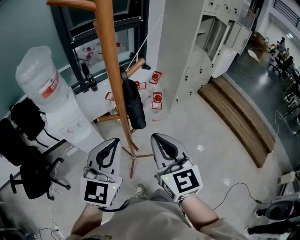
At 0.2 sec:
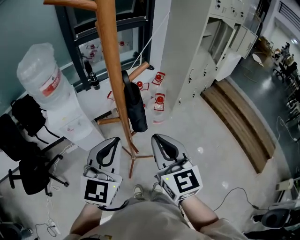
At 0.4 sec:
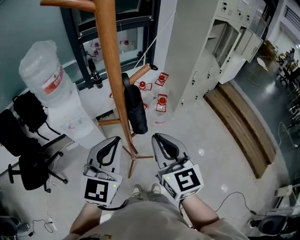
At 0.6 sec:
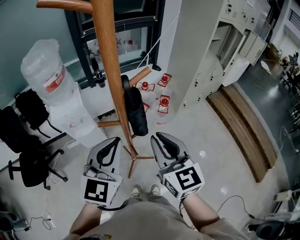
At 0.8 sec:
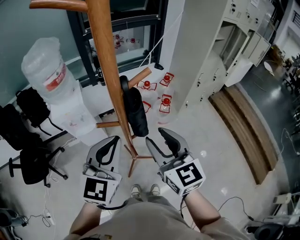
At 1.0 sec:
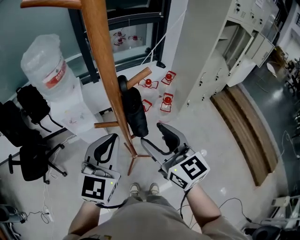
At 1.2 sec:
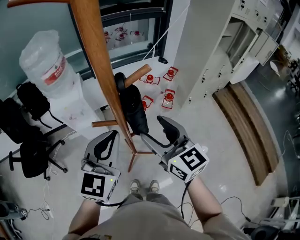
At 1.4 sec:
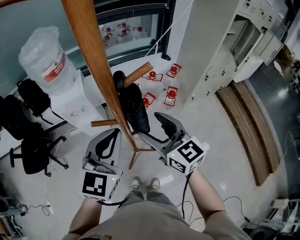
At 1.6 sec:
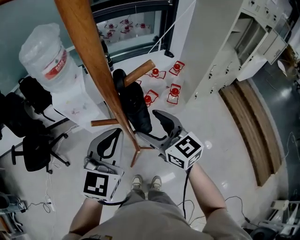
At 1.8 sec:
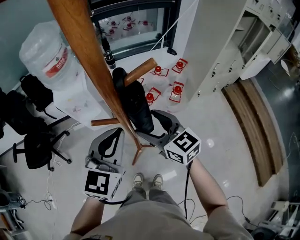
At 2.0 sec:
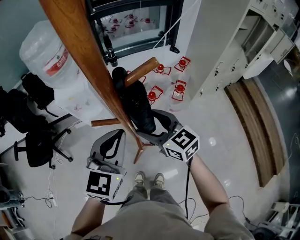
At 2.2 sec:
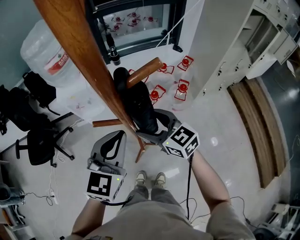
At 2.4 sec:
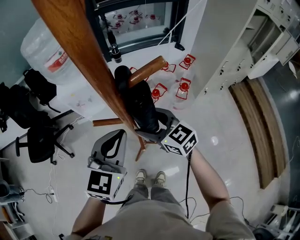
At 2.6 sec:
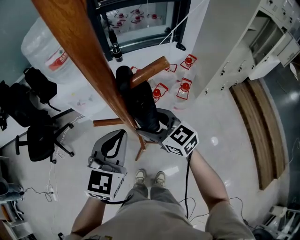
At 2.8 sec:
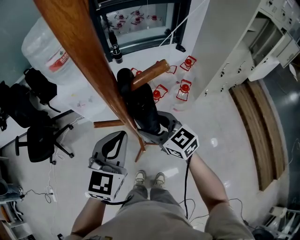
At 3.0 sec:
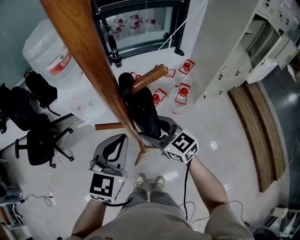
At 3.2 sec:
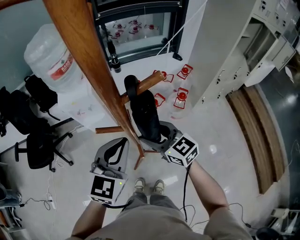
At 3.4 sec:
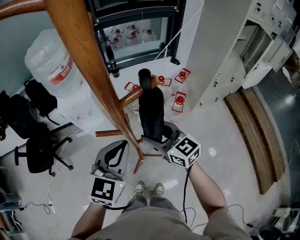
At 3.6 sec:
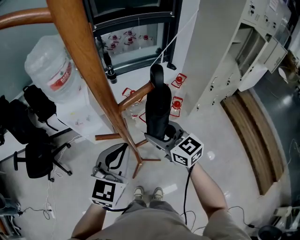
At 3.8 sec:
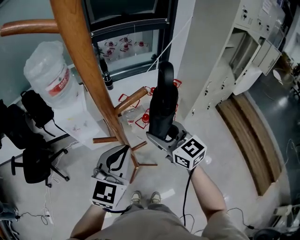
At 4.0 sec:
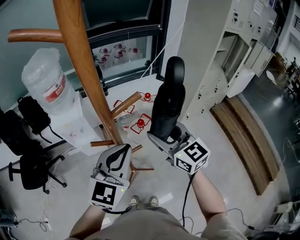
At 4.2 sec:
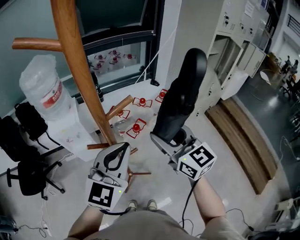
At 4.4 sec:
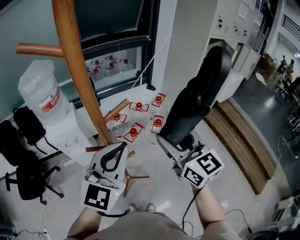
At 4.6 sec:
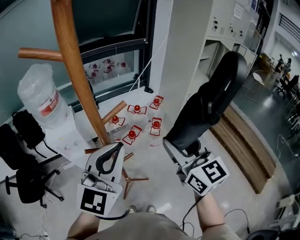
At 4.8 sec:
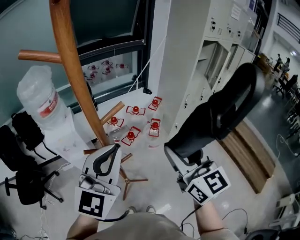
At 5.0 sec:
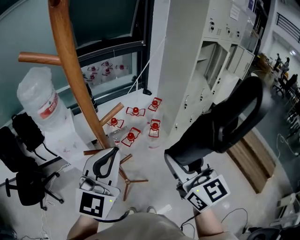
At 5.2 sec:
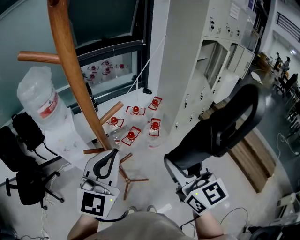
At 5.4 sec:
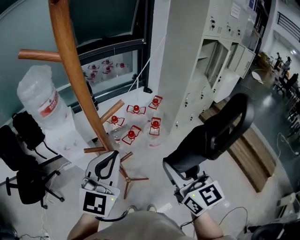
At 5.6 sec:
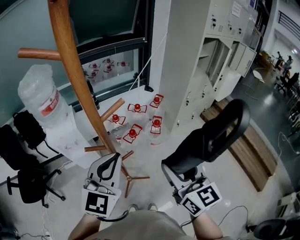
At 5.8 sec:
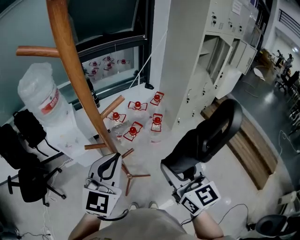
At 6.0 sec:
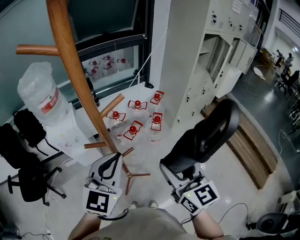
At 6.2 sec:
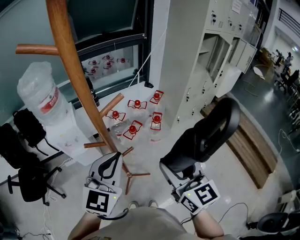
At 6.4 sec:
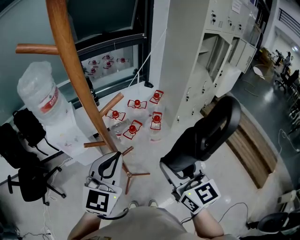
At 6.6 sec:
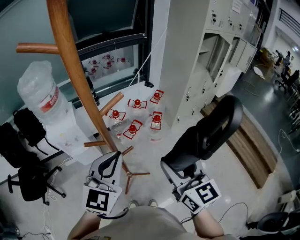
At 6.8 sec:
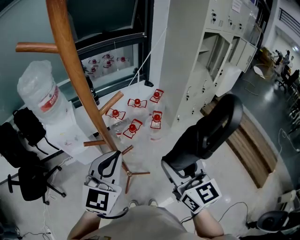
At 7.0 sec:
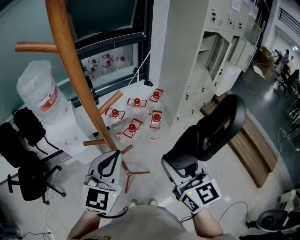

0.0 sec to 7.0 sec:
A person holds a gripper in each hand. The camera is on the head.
0.0 sec to 1.4 sec: The left gripper is displaced forward by about 10 cm; the right gripper goes about 15 cm forward and downward, changes its angle by some 30 degrees, and opens up.
1.4 sec to 2.8 sec: The right gripper moves downward and forward, about 10 cm, while the left gripper heads downward, covering roughly 5 cm.
2.8 sec to 4.2 sec: The right gripper shifts roughly 20 cm upward and to the right, and swivels about 30 degrees. Meanwhile the left gripper is displaced upward and to the right by roughly 15 cm, and rotates approximately 20 degrees.
4.2 sec to 5.6 sec: The right gripper moves backward and to the right, about 15 cm.
5.6 sec to 7.0 sec: There are only small adjustments of the grippers.

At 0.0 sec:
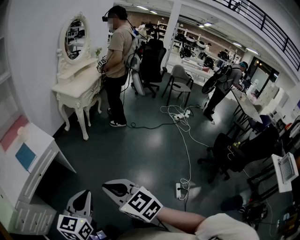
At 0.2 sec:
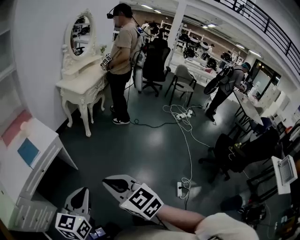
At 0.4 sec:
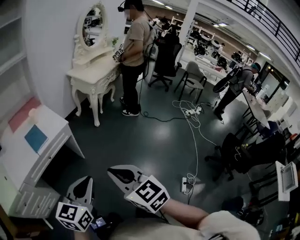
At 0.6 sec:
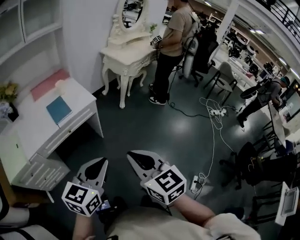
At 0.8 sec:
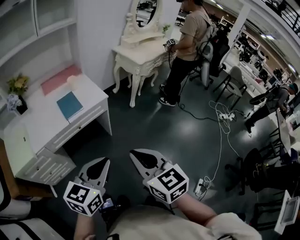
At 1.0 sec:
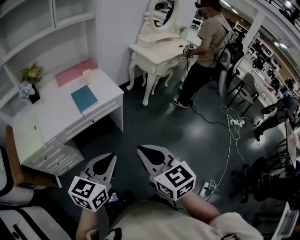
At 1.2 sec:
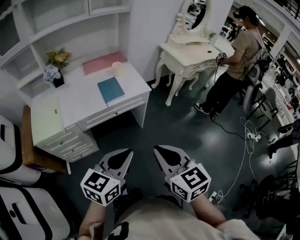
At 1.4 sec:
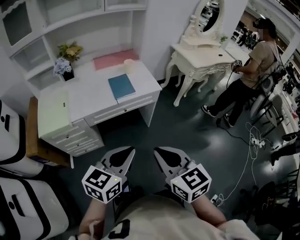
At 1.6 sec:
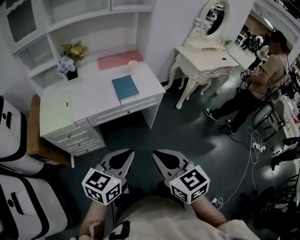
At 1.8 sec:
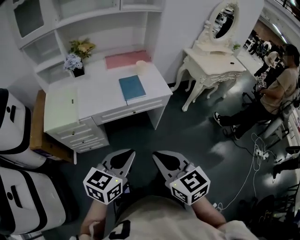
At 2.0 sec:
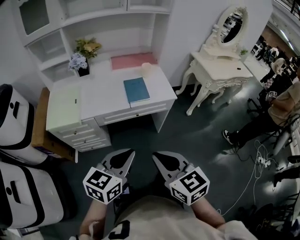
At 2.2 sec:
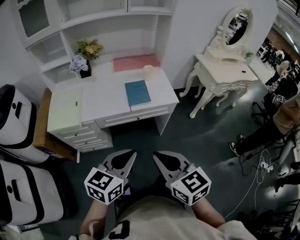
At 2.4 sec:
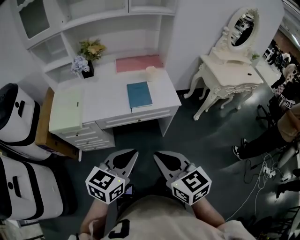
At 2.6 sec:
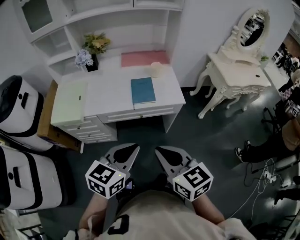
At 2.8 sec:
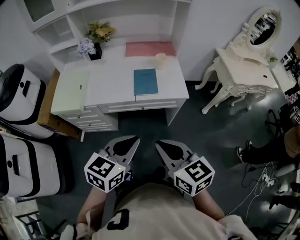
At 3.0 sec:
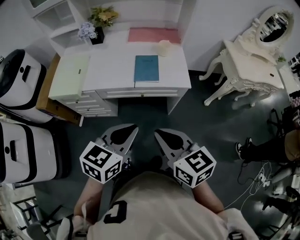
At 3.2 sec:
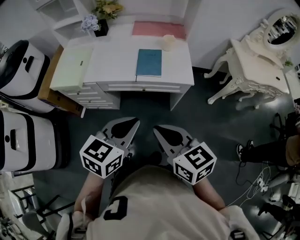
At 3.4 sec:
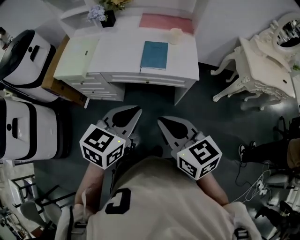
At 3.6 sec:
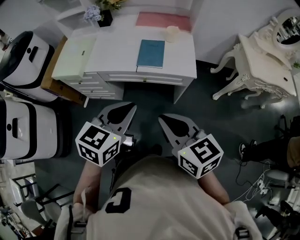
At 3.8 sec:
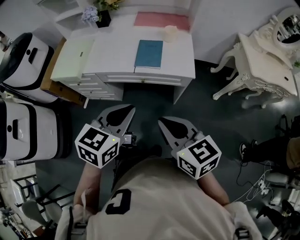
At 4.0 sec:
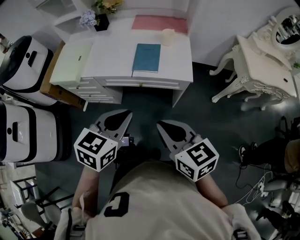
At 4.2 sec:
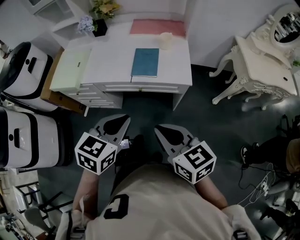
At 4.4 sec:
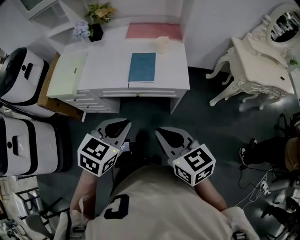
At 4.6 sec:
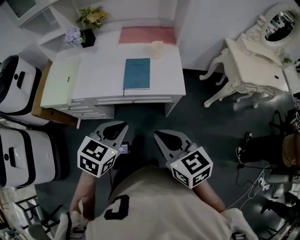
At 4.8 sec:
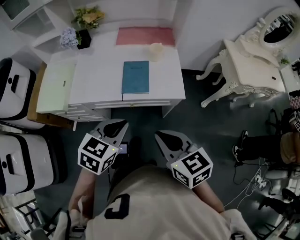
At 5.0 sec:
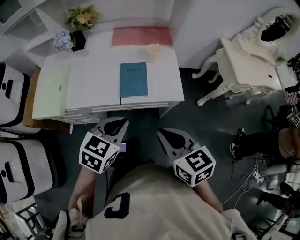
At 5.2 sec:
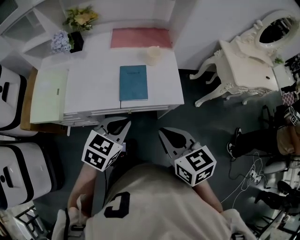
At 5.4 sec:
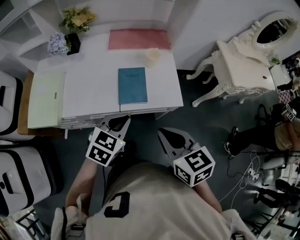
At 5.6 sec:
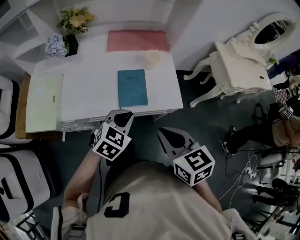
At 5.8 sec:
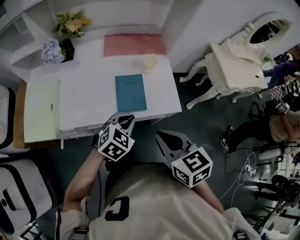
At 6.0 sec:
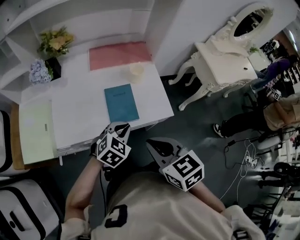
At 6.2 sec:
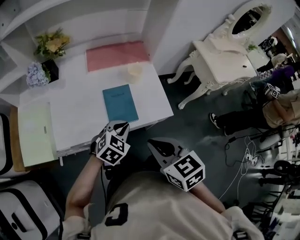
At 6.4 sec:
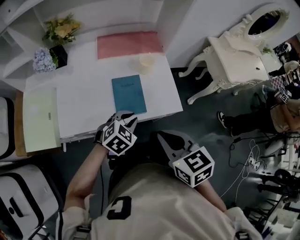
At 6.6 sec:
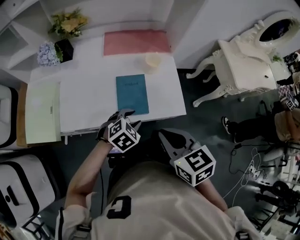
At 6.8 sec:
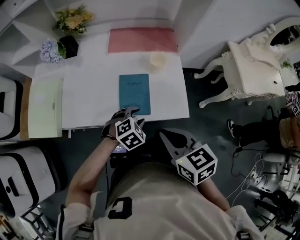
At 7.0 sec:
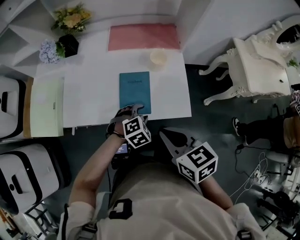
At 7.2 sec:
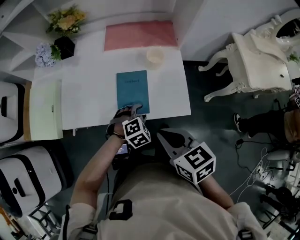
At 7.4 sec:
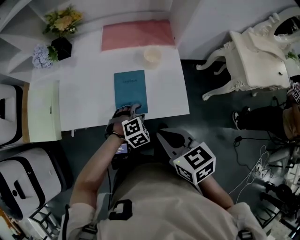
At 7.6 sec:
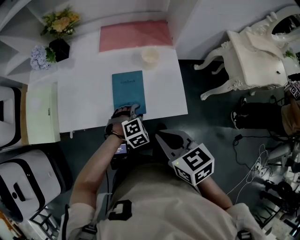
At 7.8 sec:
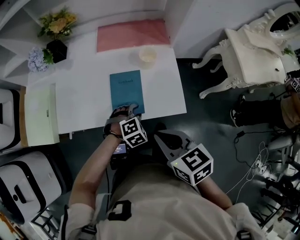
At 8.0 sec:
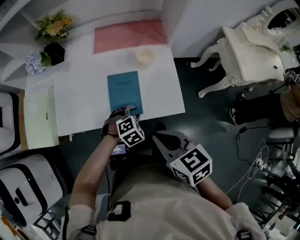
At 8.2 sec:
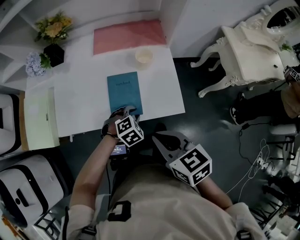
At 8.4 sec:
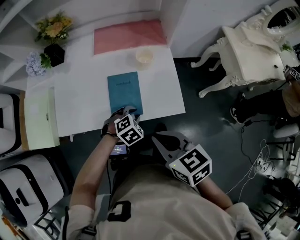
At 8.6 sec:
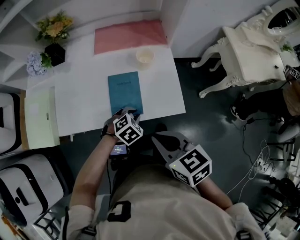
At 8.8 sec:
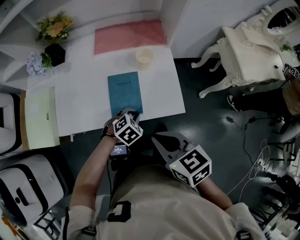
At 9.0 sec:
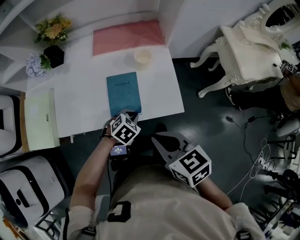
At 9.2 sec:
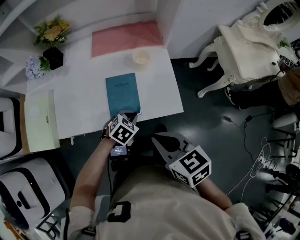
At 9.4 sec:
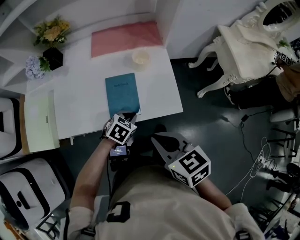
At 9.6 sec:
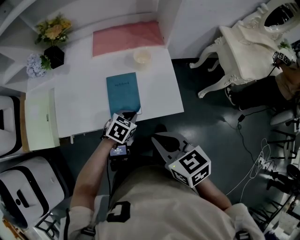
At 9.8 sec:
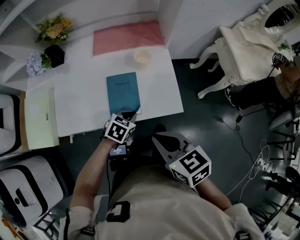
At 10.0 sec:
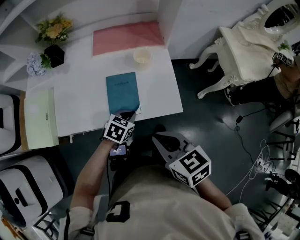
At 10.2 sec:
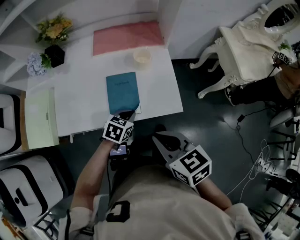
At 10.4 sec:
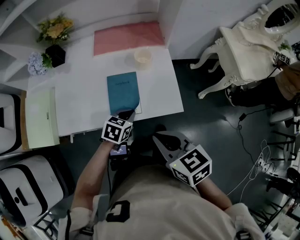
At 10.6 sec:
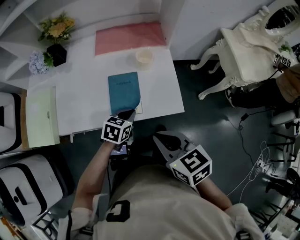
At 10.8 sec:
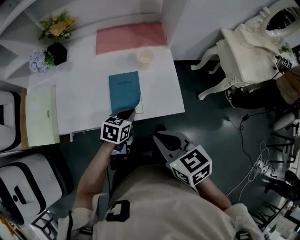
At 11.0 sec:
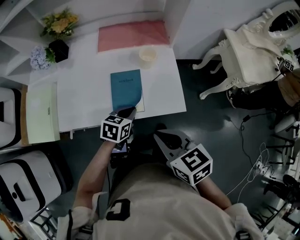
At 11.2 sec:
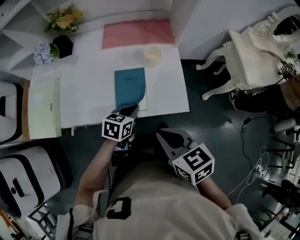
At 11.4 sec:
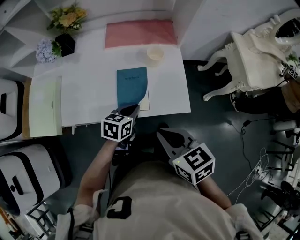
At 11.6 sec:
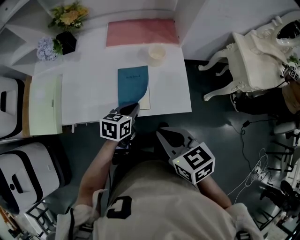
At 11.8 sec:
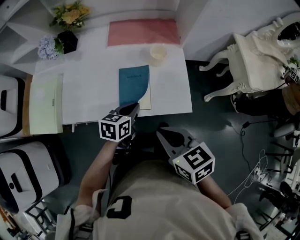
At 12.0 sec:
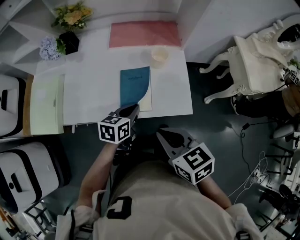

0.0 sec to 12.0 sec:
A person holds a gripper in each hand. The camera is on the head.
0.0 sec to 1.6 sec: The two grippers go about 25 cm to the left. The left gripper rotates some 20 degrees; the right gripper changes its angle by about 20 degrees.
1.6 sec to 3.0 sec: Both grippers travel together forward and to the right, about 15 cm. The right gripper rotates approximately 20 degrees.
3.0 sec to 4.4 sec: The left gripper moves some 5 cm, while the right gripper shifts about 5 cm to the right.
4.4 sec to 6.0 sec: The left gripper goes approximately 25 cm forward and downward, and changes its angle by about 30 degrees; the right gripper goes about 15 cm forward and to the left, and rotates roughly 20 degrees.
6.0 sec to 7.6 sec: The left gripper goes roughly 15 cm downward, rotates about 30 degrees, and opens; the right gripper heads to the right, covering roughly 5 cm.
7.6 sec to 9.0 sec: The left gripper swivels approximately 30 degrees, and closes its fingers.
9.0 sec to 10.4 sec: The left gripper rotates approximately 30 degrees.
10.4 sec to 12.0 sec: The left gripper shifts by about 5 cm, and swivels about 20 degrees.

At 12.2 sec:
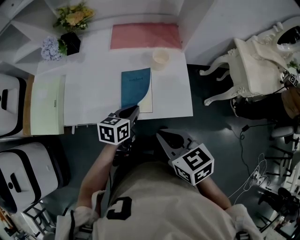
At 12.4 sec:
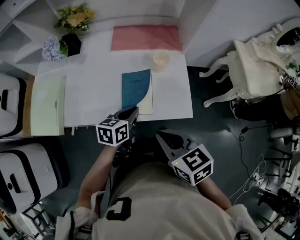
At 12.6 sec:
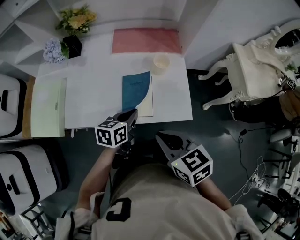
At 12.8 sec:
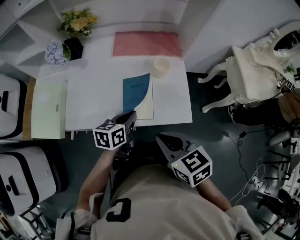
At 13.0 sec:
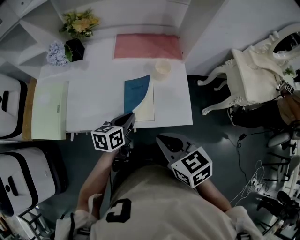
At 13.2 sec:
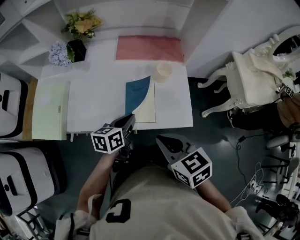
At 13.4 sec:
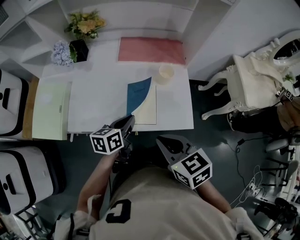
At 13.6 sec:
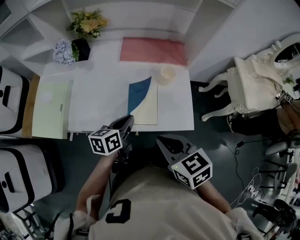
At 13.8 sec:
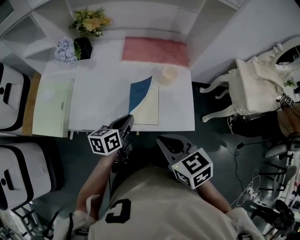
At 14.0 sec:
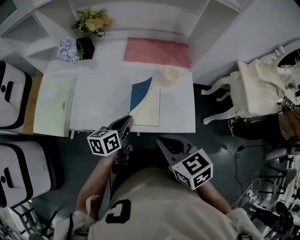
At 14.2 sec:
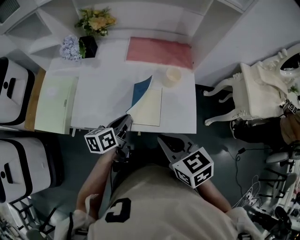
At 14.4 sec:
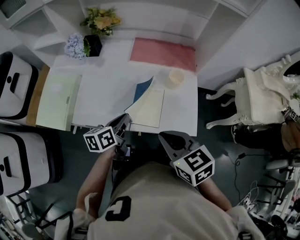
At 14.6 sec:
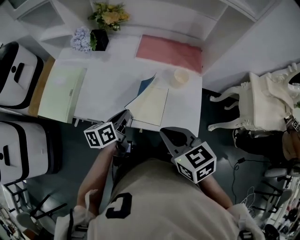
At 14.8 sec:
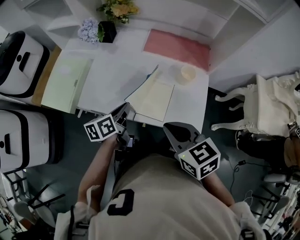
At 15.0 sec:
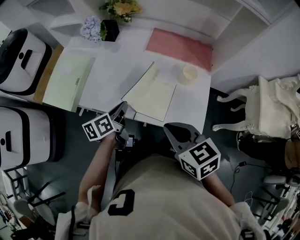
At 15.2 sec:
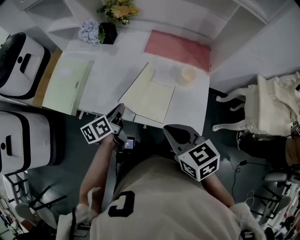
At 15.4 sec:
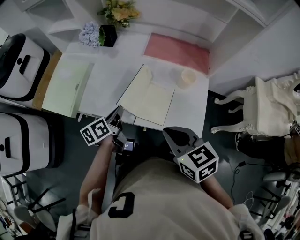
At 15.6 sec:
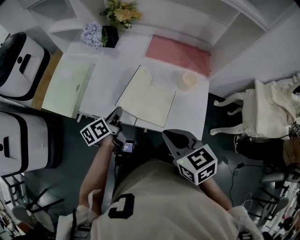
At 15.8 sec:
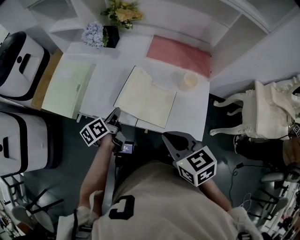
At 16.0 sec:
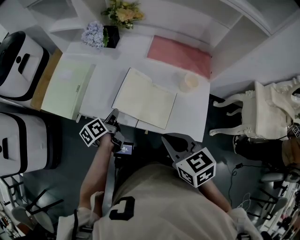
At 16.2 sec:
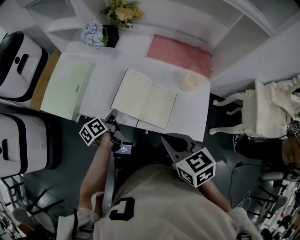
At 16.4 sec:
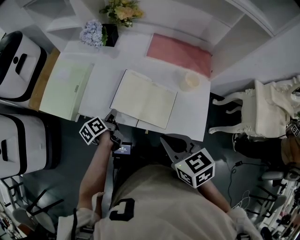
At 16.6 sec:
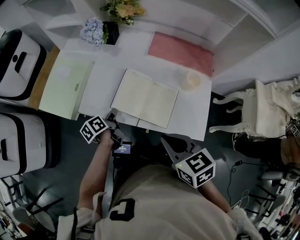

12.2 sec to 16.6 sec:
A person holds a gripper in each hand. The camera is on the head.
12.2 sec to 13.6 sec: The left gripper moves to the left, about 5 cm.
13.6 sec to 15.2 sec: The left gripper heads to the left, covering roughly 10 cm, and turns by approximately 30 degrees.
15.2 sec to 16.6 sec: The left gripper travels downward and to the left by some 10 cm.
